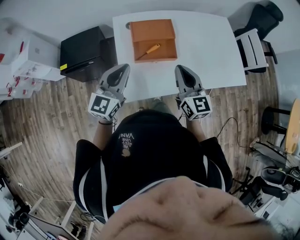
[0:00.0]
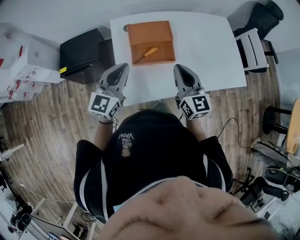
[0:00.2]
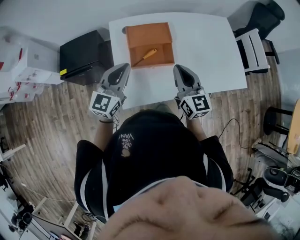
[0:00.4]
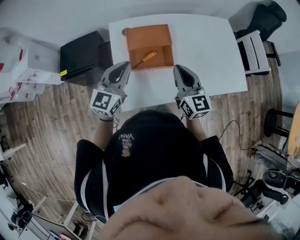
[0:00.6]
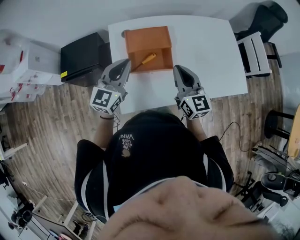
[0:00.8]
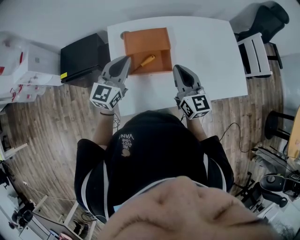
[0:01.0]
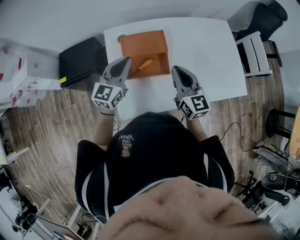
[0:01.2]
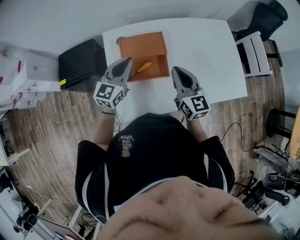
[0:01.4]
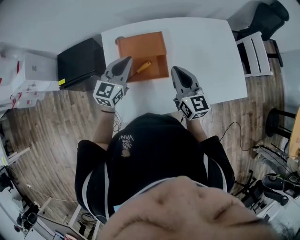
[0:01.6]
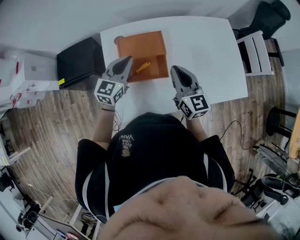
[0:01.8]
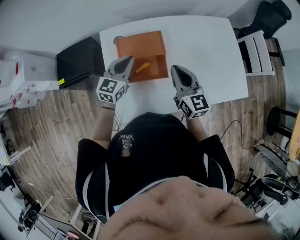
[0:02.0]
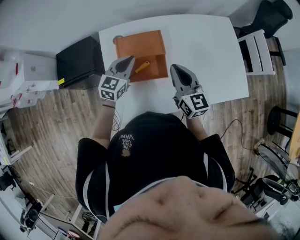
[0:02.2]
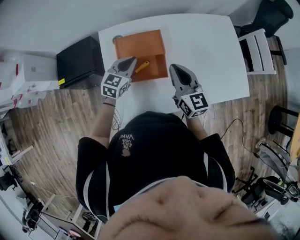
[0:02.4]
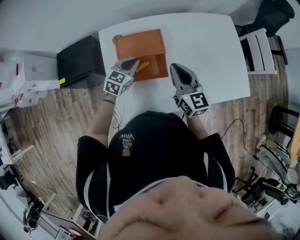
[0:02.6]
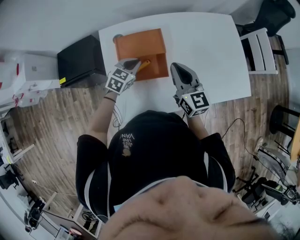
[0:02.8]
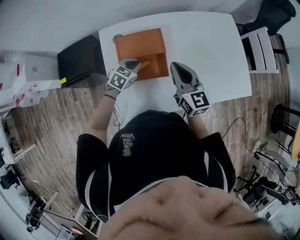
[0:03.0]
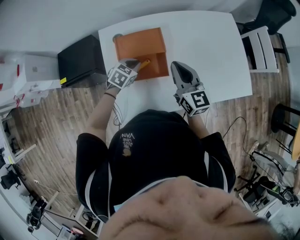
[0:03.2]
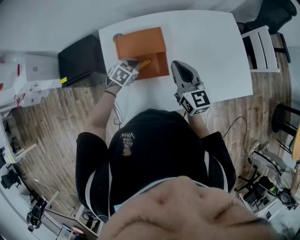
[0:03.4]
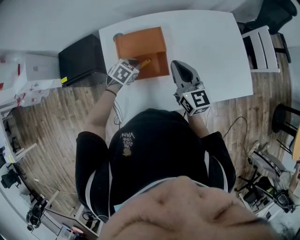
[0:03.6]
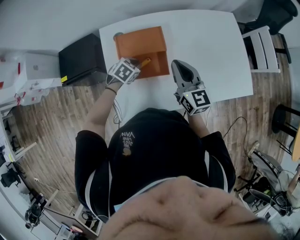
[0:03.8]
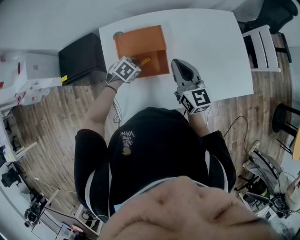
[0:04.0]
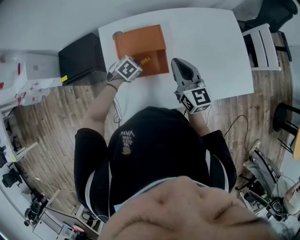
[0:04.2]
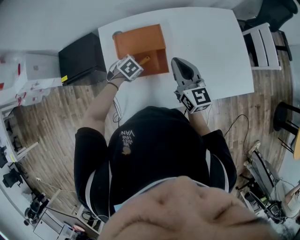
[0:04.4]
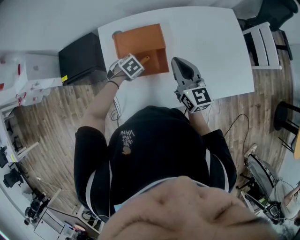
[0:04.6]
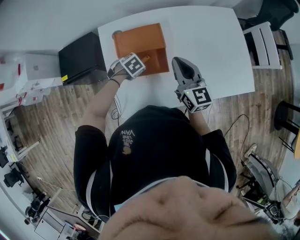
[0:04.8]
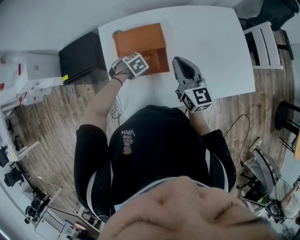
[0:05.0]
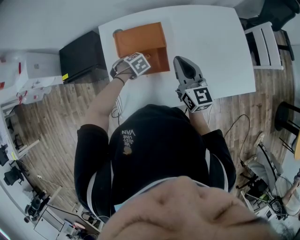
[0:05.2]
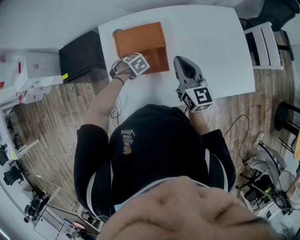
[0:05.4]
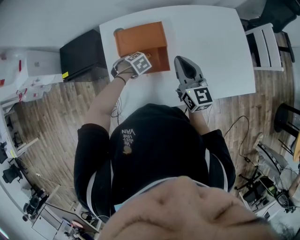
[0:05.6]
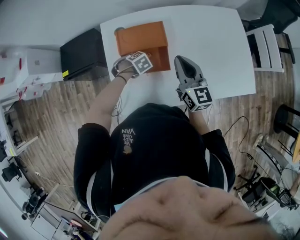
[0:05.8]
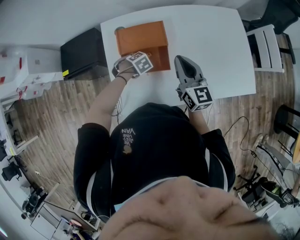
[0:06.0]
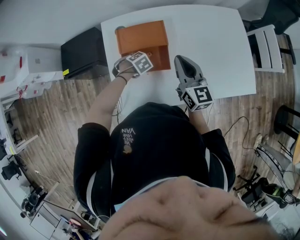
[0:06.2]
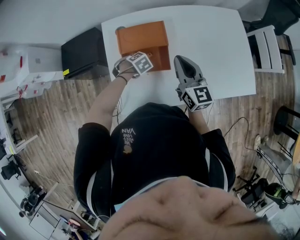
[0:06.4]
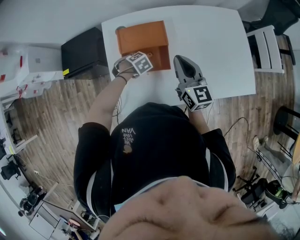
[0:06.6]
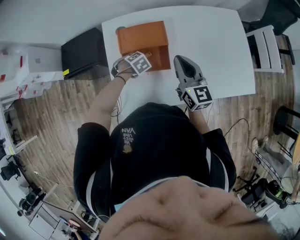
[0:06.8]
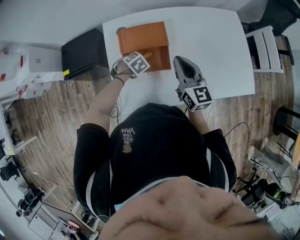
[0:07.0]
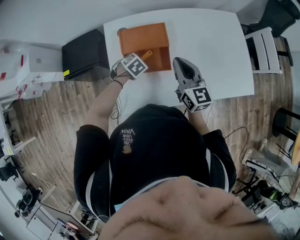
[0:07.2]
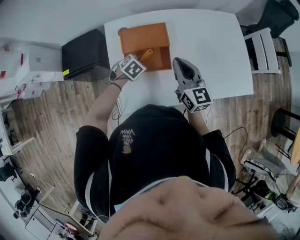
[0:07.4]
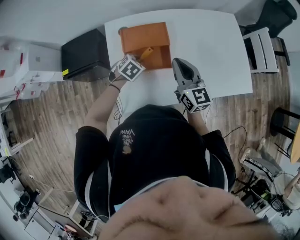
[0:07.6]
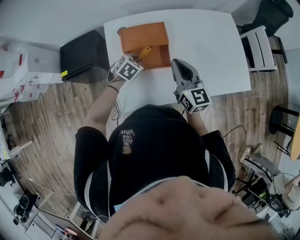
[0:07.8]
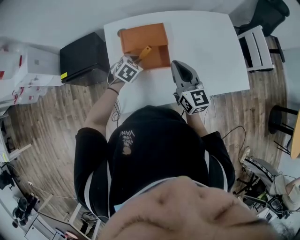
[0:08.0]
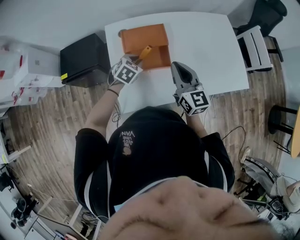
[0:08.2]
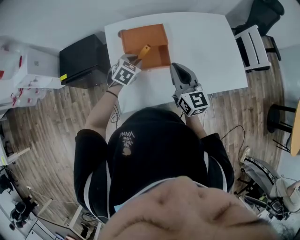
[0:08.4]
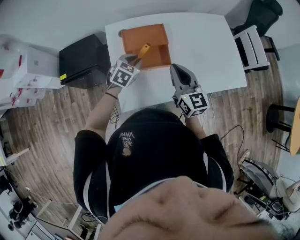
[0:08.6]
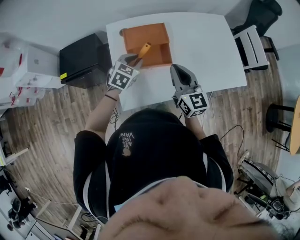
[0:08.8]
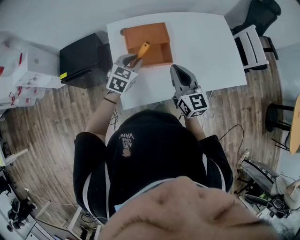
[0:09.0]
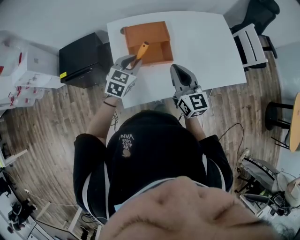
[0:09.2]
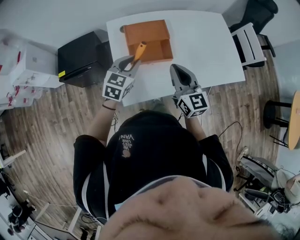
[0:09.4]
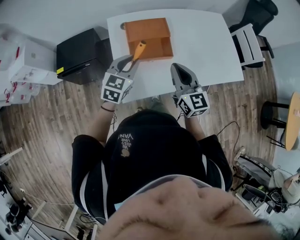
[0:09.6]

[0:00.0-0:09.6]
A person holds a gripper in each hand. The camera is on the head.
0:00.0 to 0:01.6: Both grippers move forward, some 15 cm.
0:01.6 to 0:03.2: The left gripper moves downward, some 15 cm, and angles its fingers downward, by some 40 degrees.
0:03.2 to 0:04.8: The left gripper goes roughly 5 cm downward, turns by roughly 30 degrees, and opens its fingers.
0:04.8 to 0:06.4: The grippers move only a little.
0:06.4 to 0:08.0: The left gripper moves upward, some 10 cm, and tips its fingers upward by about 30 degrees. Meanwhile the right gripper changes place by some 5 cm.
0:08.0 to 0:09.6: The right gripper travels backward by approximately 10 cm. The left gripper shifts roughly 15 cm upward and backward, and points its fingers approximately 30 degrees further upward.

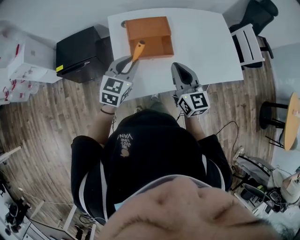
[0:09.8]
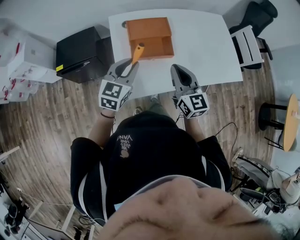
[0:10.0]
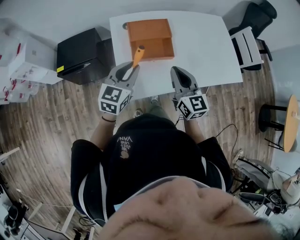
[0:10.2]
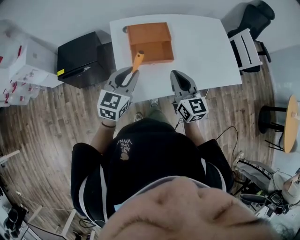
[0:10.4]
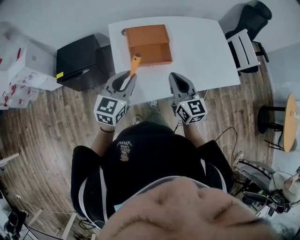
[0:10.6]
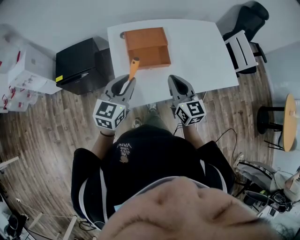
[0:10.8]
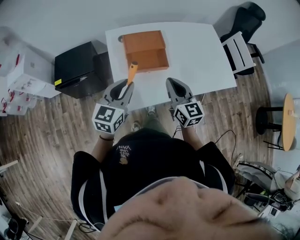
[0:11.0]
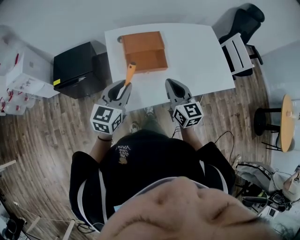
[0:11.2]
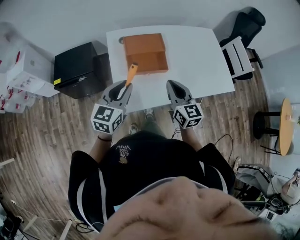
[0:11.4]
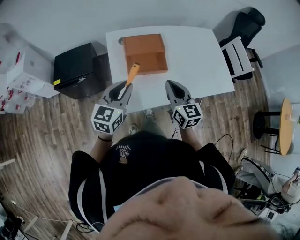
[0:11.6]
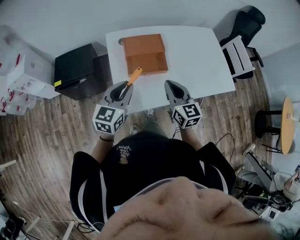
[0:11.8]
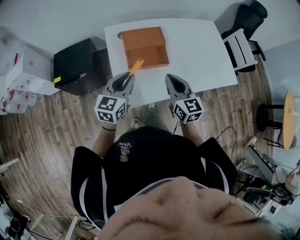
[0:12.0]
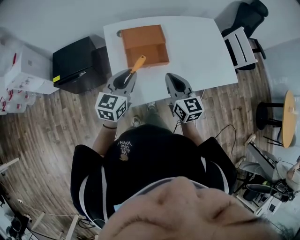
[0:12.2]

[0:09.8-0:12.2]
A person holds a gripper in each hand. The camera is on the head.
0:09.8 to 0:11.0: The left gripper shifts some 5 cm backward.
0:11.0 to 0:12.2: The grippers move only a little.

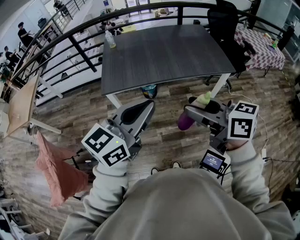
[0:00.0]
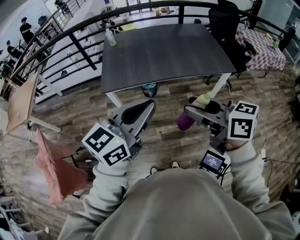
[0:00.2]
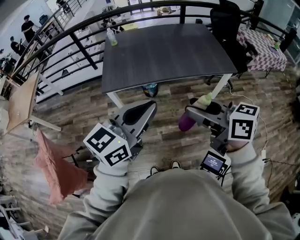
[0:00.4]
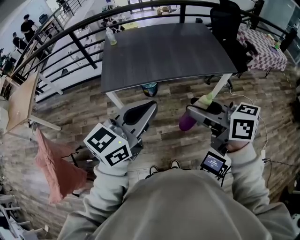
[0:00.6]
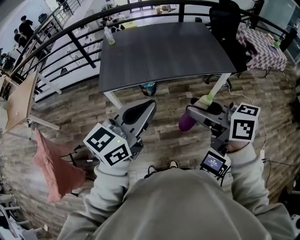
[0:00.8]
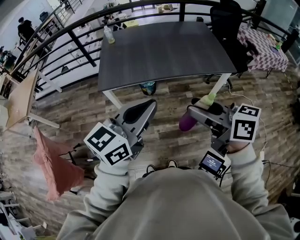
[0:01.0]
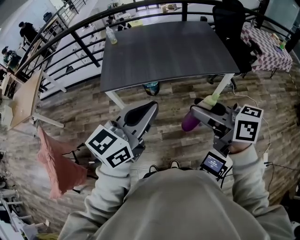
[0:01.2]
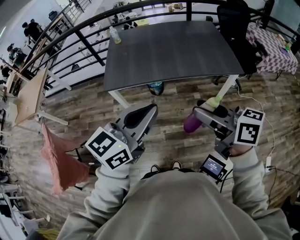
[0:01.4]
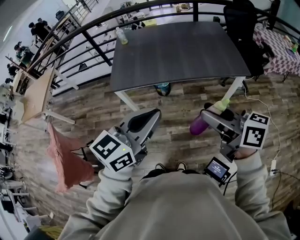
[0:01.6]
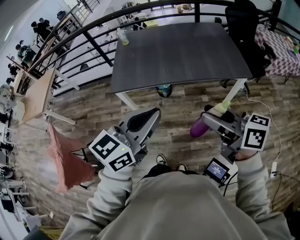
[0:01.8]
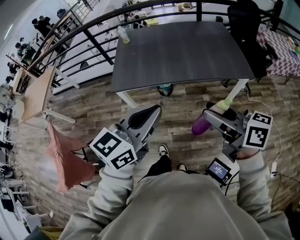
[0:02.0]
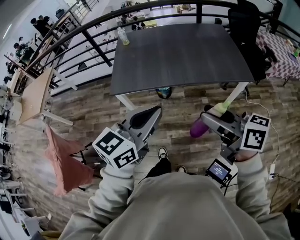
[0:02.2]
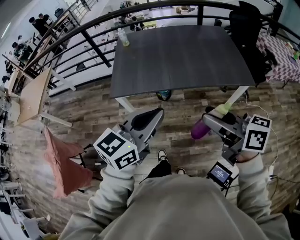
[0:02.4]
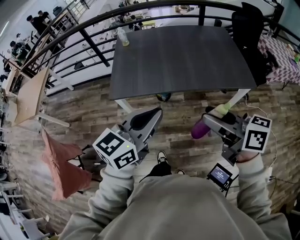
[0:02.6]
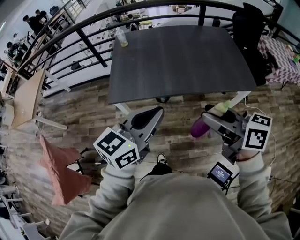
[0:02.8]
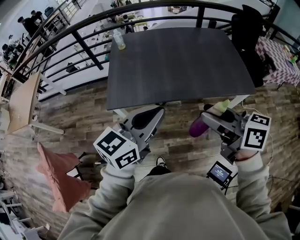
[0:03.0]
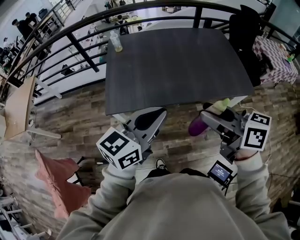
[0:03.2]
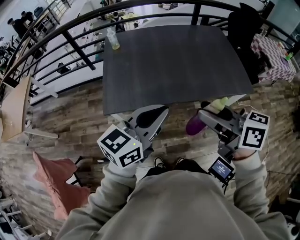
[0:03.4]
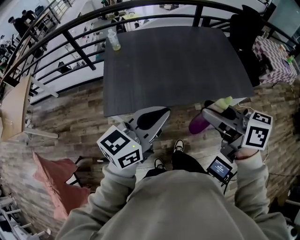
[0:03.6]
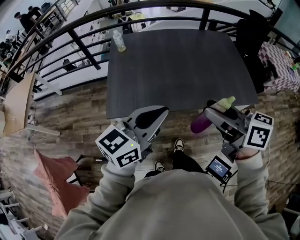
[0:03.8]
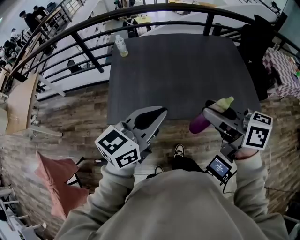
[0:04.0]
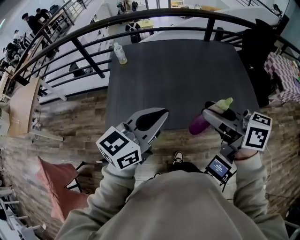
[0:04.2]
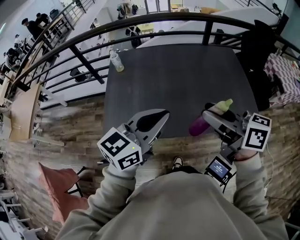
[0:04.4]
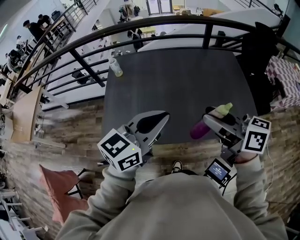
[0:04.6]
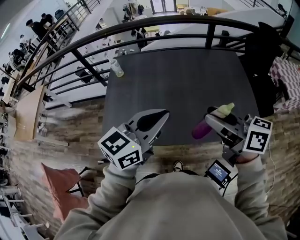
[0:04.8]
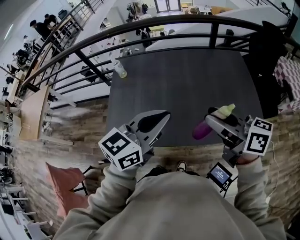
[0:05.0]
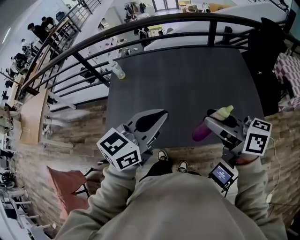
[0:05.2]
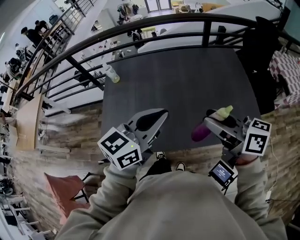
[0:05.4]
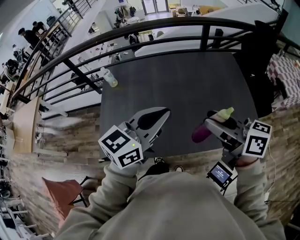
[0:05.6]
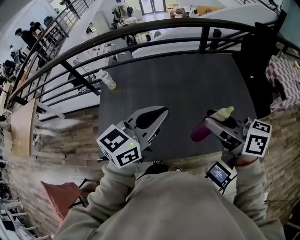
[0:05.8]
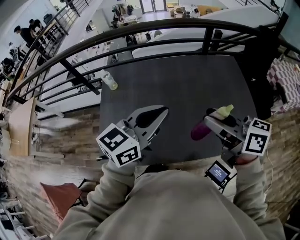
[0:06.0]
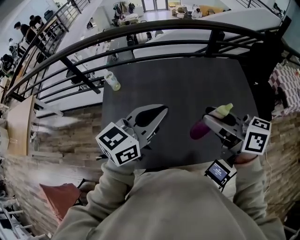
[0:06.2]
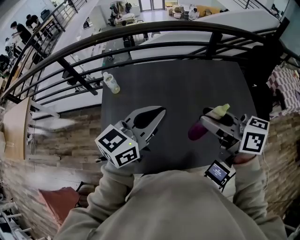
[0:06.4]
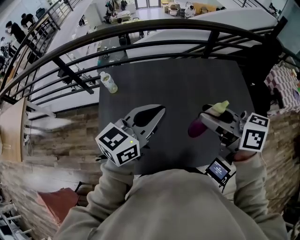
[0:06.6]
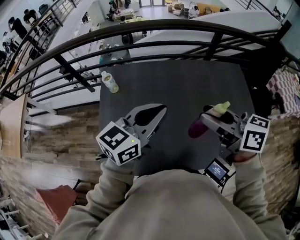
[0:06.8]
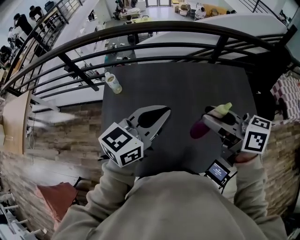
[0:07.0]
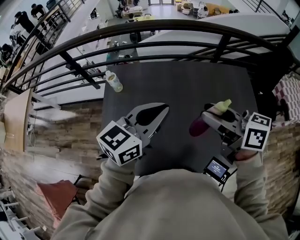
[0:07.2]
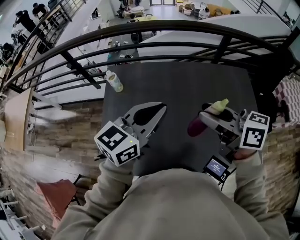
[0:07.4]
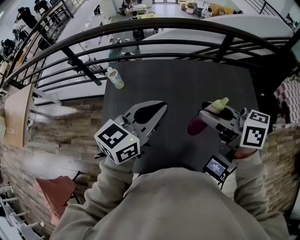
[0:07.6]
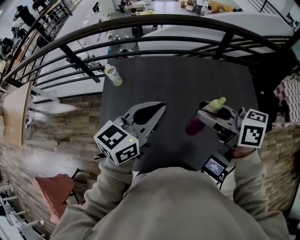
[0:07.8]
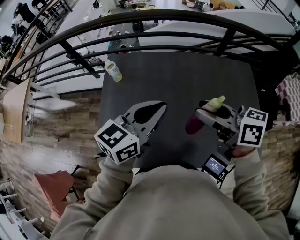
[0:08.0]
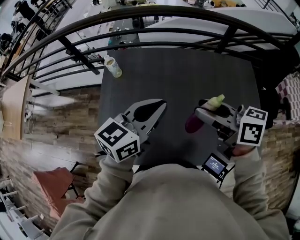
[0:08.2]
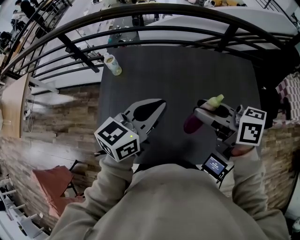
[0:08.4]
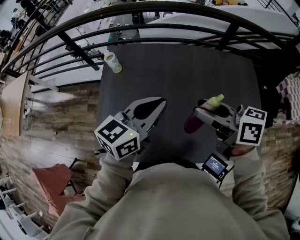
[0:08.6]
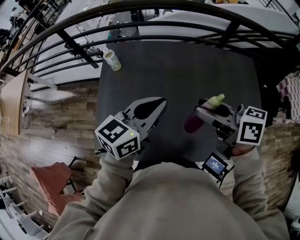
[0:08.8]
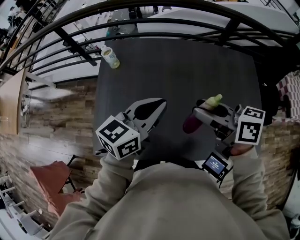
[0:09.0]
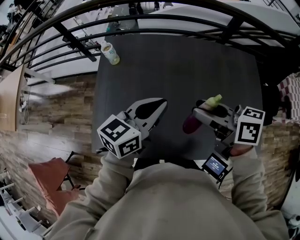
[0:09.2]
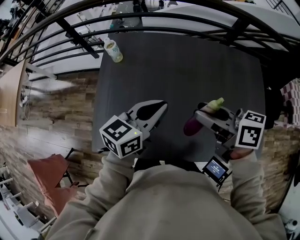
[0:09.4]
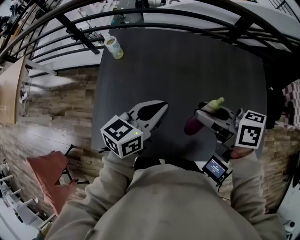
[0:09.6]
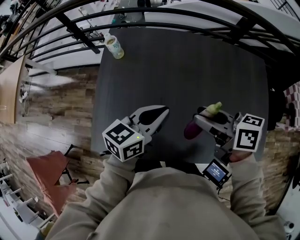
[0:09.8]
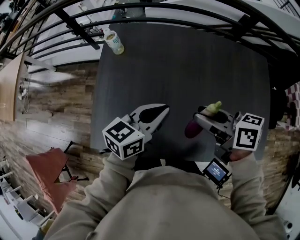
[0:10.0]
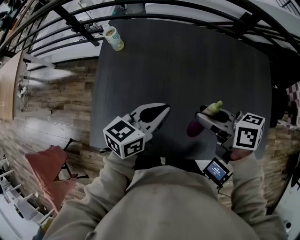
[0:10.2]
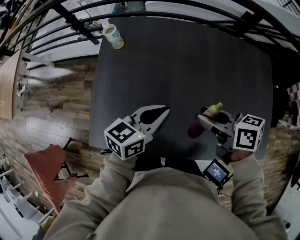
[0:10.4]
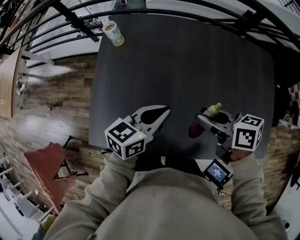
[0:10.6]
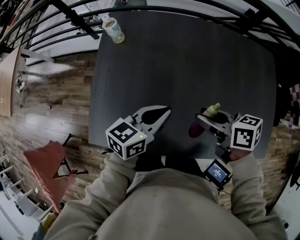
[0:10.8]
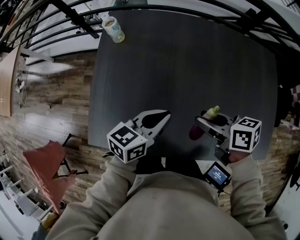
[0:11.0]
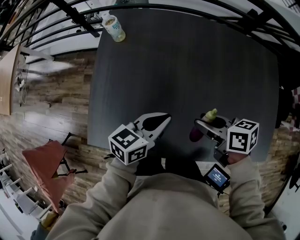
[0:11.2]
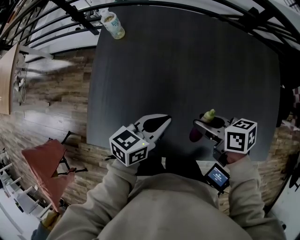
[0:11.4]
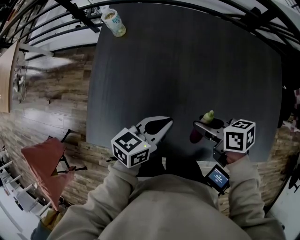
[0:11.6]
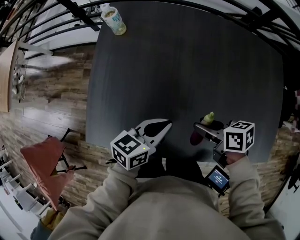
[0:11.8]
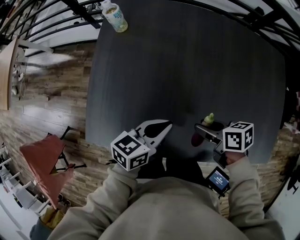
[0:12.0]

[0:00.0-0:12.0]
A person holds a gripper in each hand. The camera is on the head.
0:00.0 to 0:01.6: The two grippers go roughly 10 cm to the right.
0:01.6 to 0:03.0: Both grippers move forward and to the left, roughly 20 cm.
0:03.0 to 0:04.4: Both grippers travel together forward, some 20 cm.
0:04.4 to 0:06.0: Both grippers move forward, roughly 15 cm.
0:06.0 to 0:07.6: Both grippers move forward and to the left, roughly 15 cm.
0:07.6 to 0:09.0: Both grippers move downward, approximately 5 cm.
0:09.0 to 0:10.4: The two grippers go about 10 cm downward.
0:10.4 to 0:12.0: The left gripper moves downward, approximately 10 cm. The right gripper travels downward by approximately 15 cm, and swivels roughly 20 degrees.
